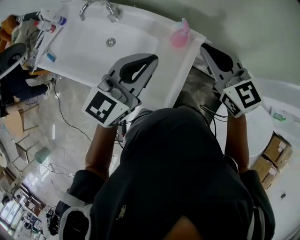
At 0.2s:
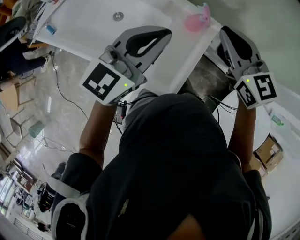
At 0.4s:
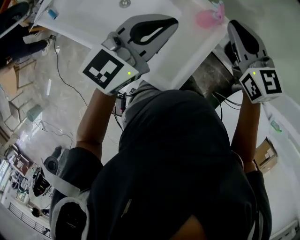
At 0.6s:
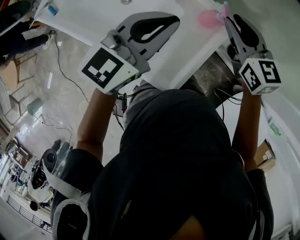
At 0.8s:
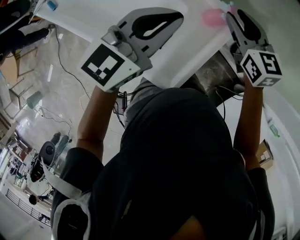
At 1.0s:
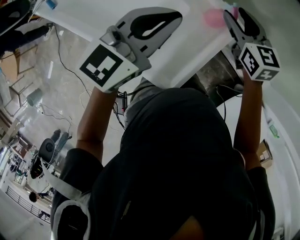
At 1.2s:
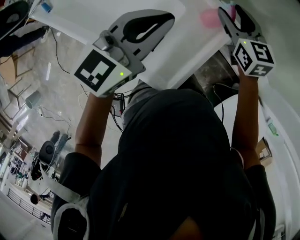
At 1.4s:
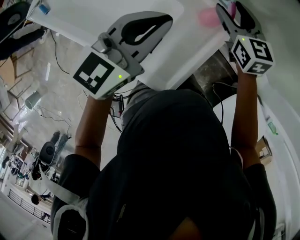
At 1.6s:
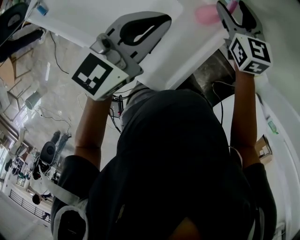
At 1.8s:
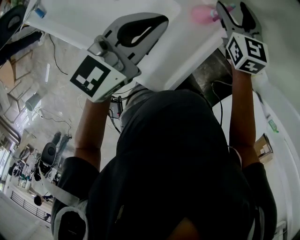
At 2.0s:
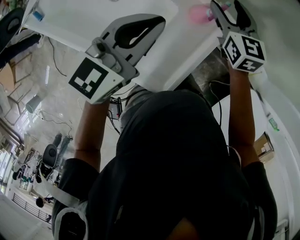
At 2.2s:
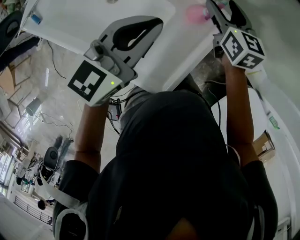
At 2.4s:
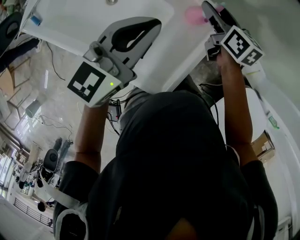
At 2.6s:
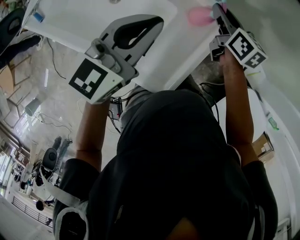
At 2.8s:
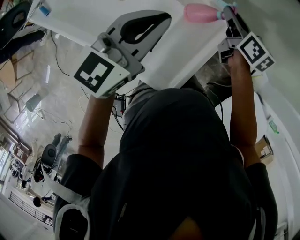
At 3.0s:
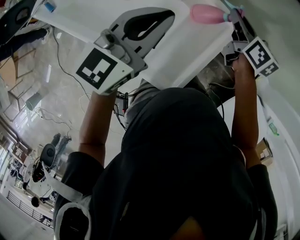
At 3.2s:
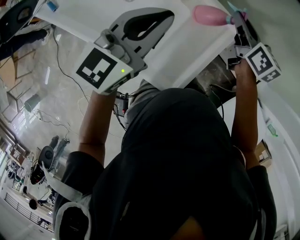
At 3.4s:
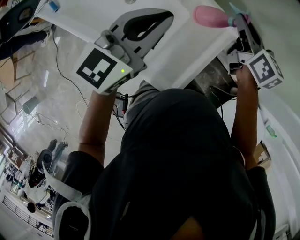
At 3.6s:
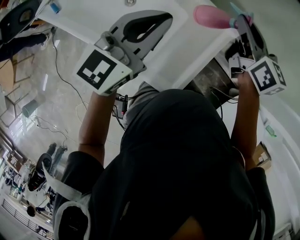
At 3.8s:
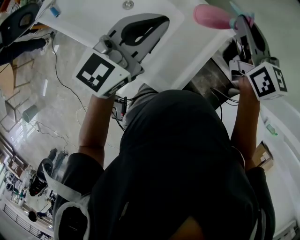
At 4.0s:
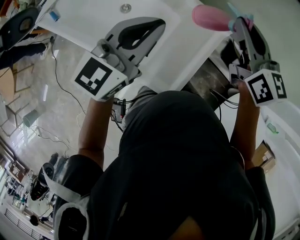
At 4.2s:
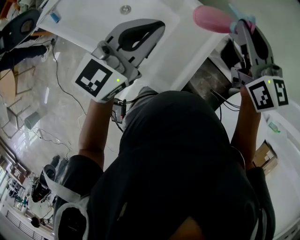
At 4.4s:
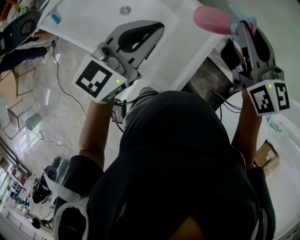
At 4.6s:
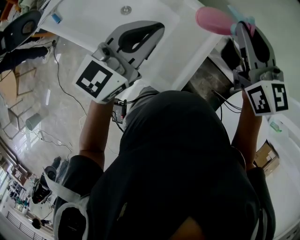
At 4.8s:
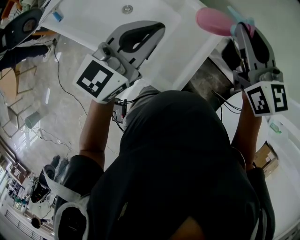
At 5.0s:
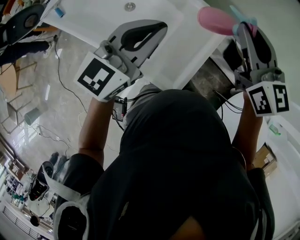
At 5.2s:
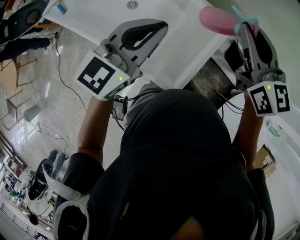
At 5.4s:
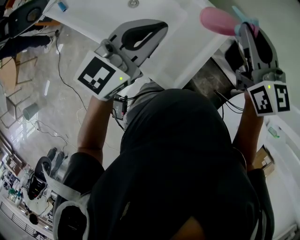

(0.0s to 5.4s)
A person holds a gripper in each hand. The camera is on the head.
0.0s - 1.4s: The right gripper heads downward and forward, covering roughly 25 cm, and opens up. Meanwhile the left gripper travels downward, forward and to the left by approximately 15 cm.
1.4s - 2.8s: The right gripper changes its angle by about 40 degrees, and closes its fingers.
2.8s - 4.0s: The right gripper travels upward and backward by some 25 cm, and changes its angle by about 30 degrees. Meanwhile the left gripper shifts some 10 cm upward and backward.
4.0s - 5.4s: The right gripper shifts approximately 5 cm backward.

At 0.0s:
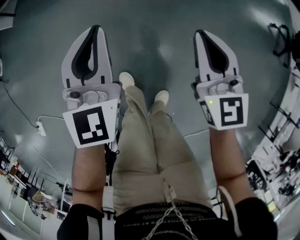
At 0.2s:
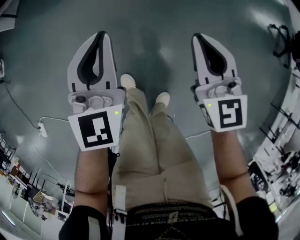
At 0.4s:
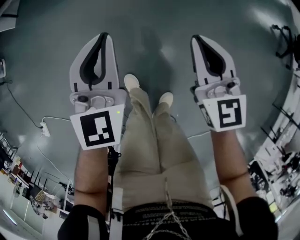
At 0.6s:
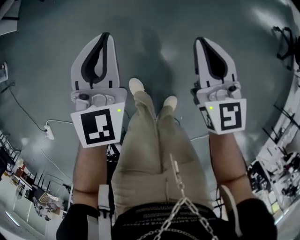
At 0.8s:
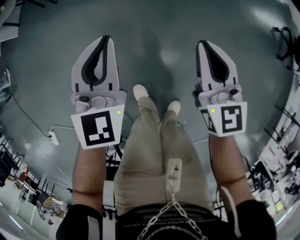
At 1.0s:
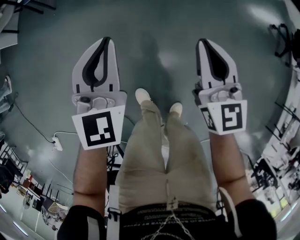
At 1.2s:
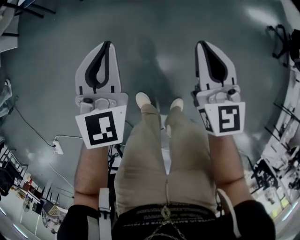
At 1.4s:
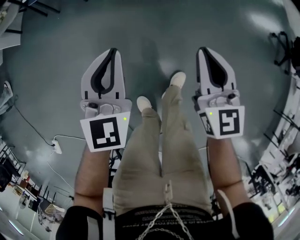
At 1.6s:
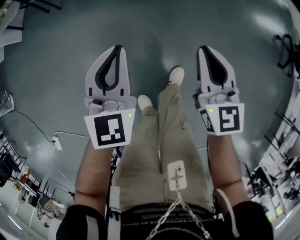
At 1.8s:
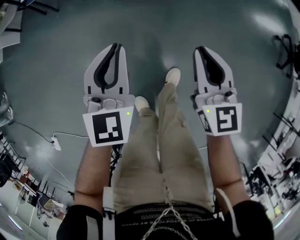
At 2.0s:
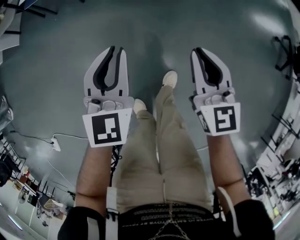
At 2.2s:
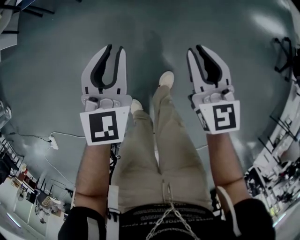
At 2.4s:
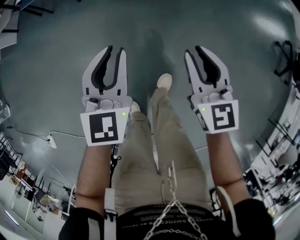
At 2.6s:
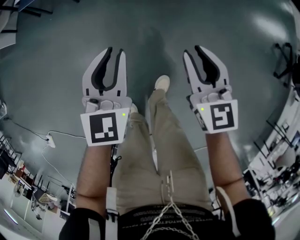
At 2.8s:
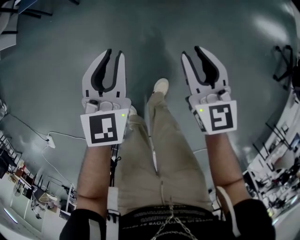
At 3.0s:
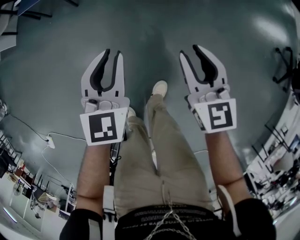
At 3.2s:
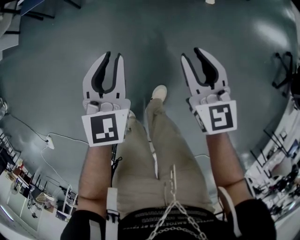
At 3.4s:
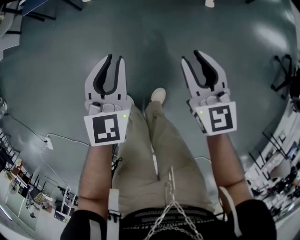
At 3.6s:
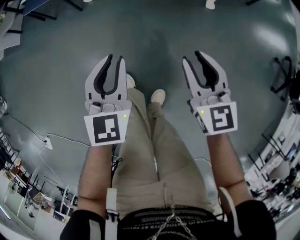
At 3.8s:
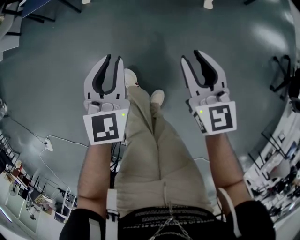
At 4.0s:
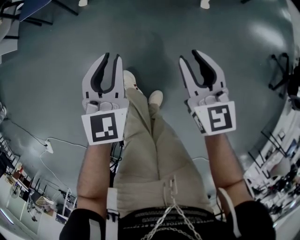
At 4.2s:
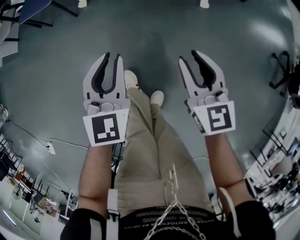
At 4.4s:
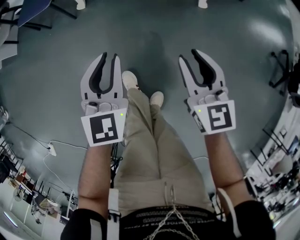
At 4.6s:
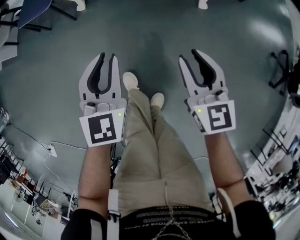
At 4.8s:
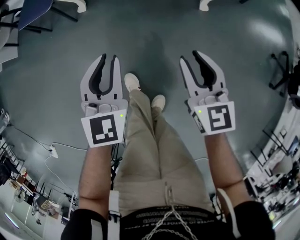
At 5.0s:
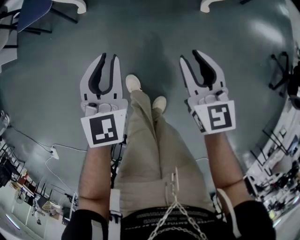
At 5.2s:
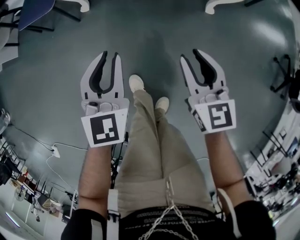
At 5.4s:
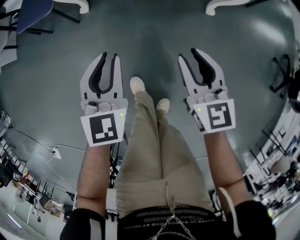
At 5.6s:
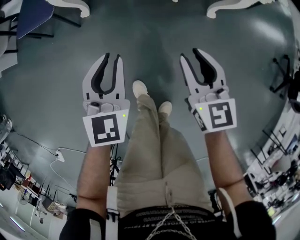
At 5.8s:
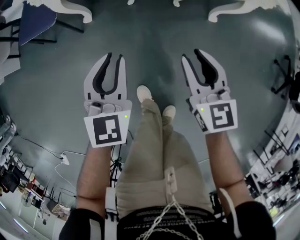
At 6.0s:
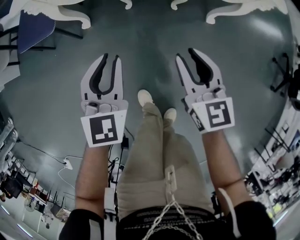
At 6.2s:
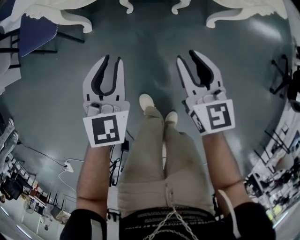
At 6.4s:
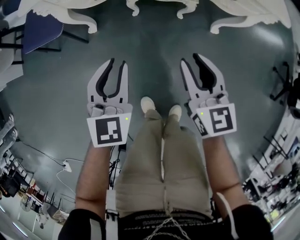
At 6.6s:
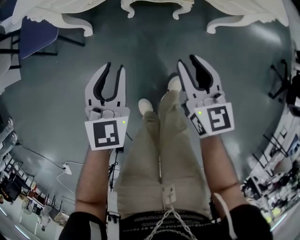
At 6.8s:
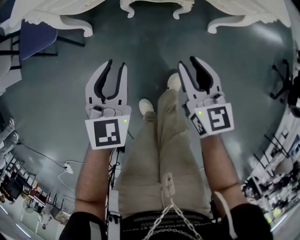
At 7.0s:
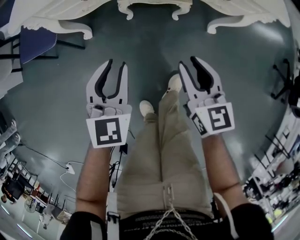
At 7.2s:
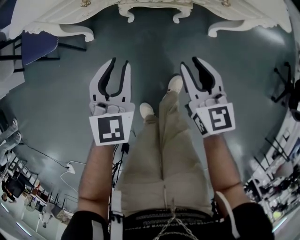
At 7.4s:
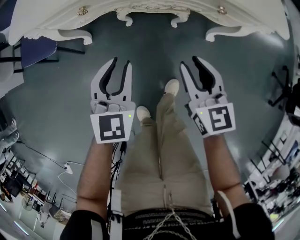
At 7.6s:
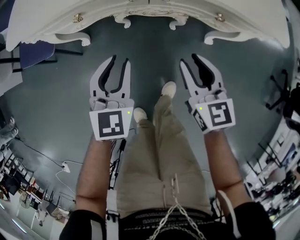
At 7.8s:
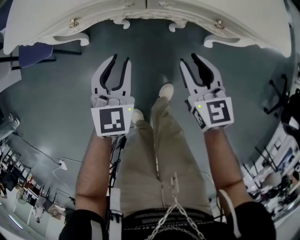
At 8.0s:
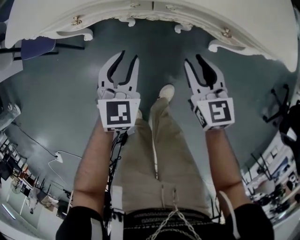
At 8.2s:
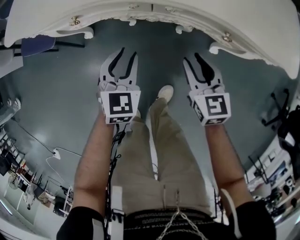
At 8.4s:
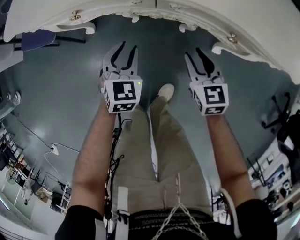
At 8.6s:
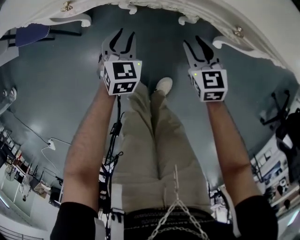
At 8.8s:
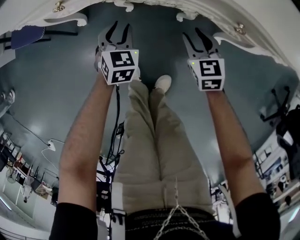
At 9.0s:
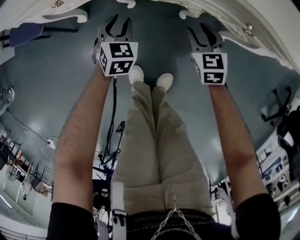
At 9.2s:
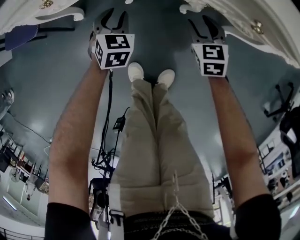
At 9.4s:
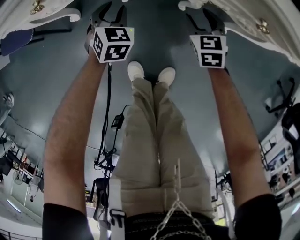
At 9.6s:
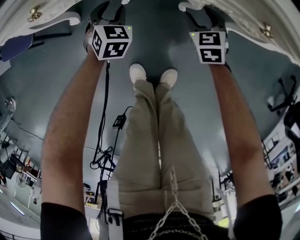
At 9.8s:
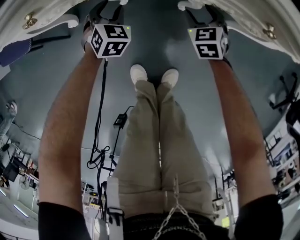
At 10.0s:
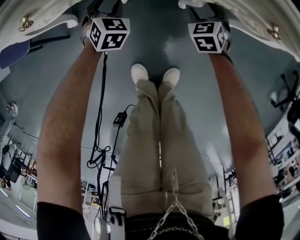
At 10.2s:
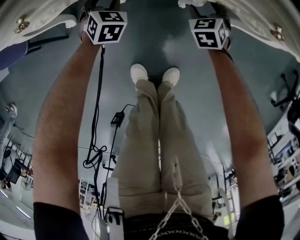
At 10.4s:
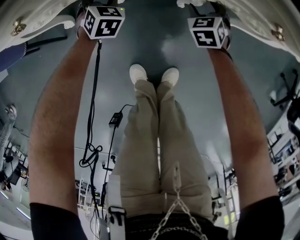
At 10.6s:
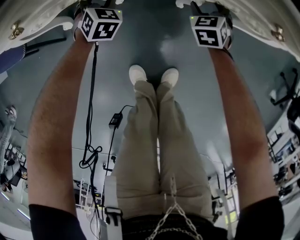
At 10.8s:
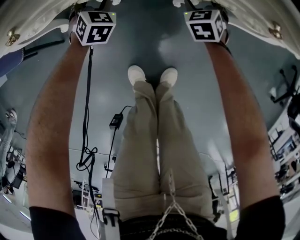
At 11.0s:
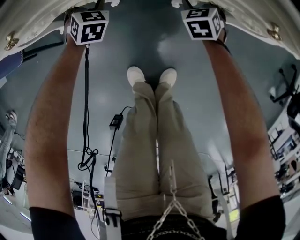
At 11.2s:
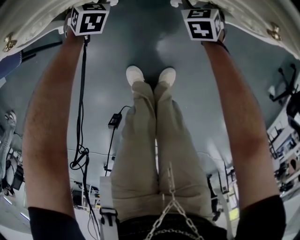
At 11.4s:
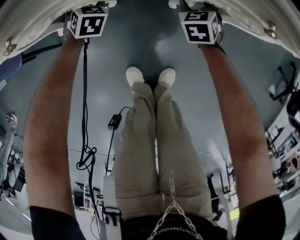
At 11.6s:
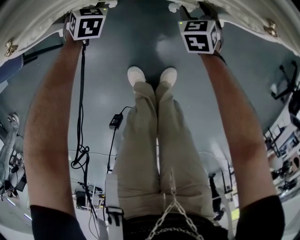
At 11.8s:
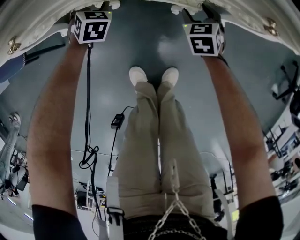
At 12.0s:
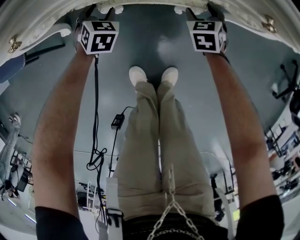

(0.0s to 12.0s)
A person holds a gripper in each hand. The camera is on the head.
0.0s - 1.6s: The left gripper heads forward, covering about 10 cm, while the right gripper is displaced forward and to the left by about 10 cm.
1.6s - 3.0s: Both grippers travel together forward and to the right, some 15 cm. The right gripper opens.
3.0s - 4.4s: The left gripper ends up roughly 5 cm from where it was.
4.4s - 6.0s: The left gripper goes roughly 15 cm forward, while the right gripper is displaced forward and to the left by some 15 cm.
6.0s - 7.6s: Both grippers travel together forward and to the right, approximately 15 cm.
7.6s - 9.0s: The two grippers go roughly 20 cm downward and forward. The left gripper turns by some 20 degrees. Meanwhile the right gripper swivels about 20 degrees.
9.0s - 10.4s: The left gripper heads forward and downward, covering roughly 15 cm; the right gripper shifts roughly 10 cm downward and forward, changes its angle by some 20 degrees, and opens up.
10.4s - 12.0s: There are only small adjustments of the grippers.

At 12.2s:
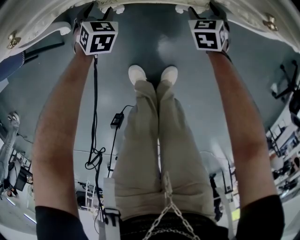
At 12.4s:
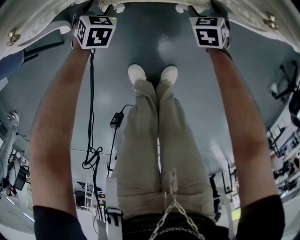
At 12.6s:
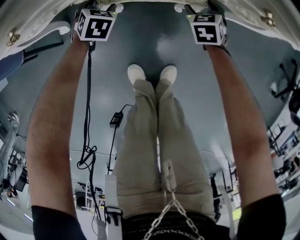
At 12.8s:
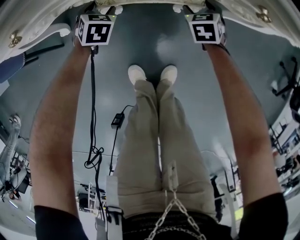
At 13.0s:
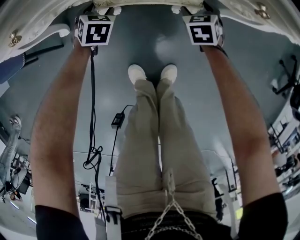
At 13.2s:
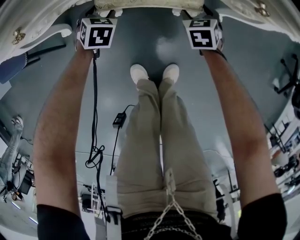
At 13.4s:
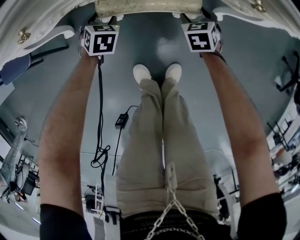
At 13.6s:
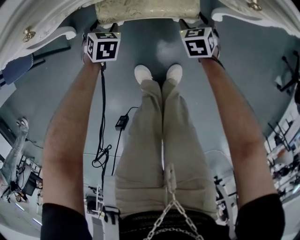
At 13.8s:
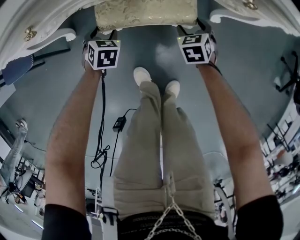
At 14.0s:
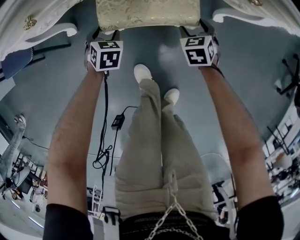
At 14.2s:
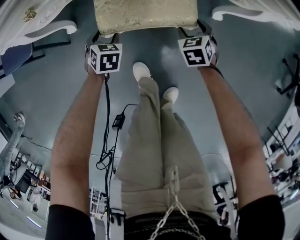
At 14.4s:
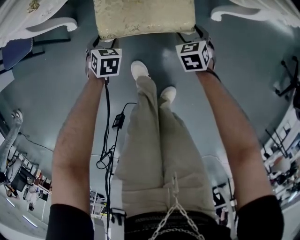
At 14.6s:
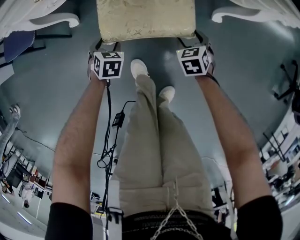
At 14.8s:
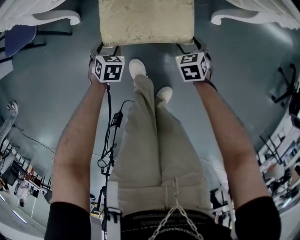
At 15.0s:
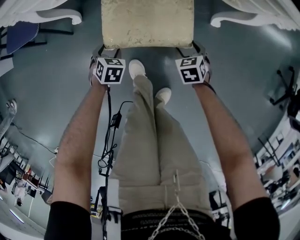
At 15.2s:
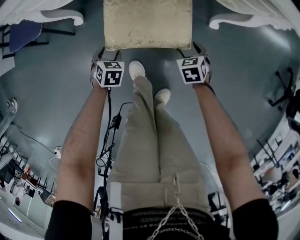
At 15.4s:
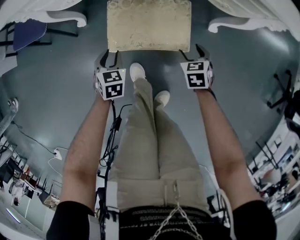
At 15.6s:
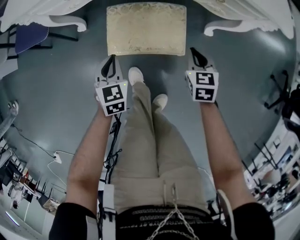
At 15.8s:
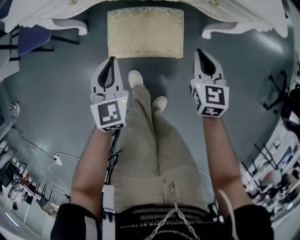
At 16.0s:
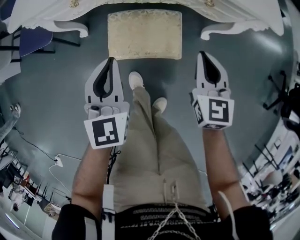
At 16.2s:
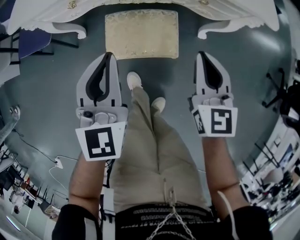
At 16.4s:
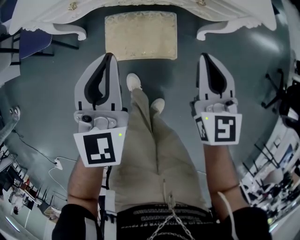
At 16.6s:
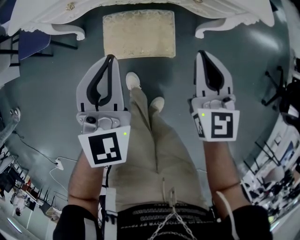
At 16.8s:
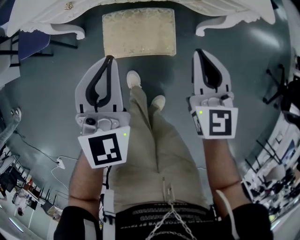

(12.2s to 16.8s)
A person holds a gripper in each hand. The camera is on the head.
12.2s - 13.8s: The two grippers go about 10 cm backward.
13.8s - 15.2s: The two grippers go some 15 cm backward.
15.2s - 16.8s: Both grippers move upward, roughly 40 cm. The right gripper tilts its fingers approximately 40 degrees upward, and closes its fingers. Meanwhile the left gripper points its fingers approximately 50 degrees further upward, and closes its fingers.

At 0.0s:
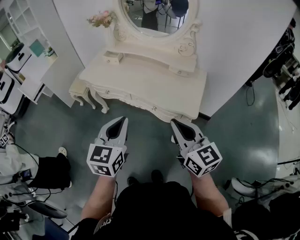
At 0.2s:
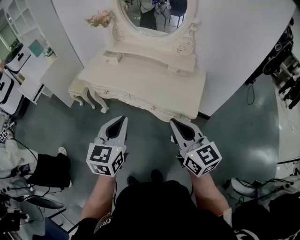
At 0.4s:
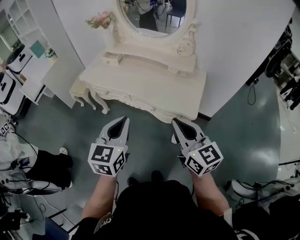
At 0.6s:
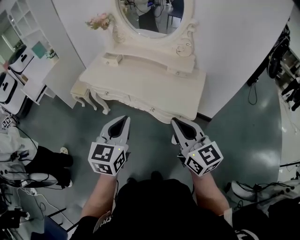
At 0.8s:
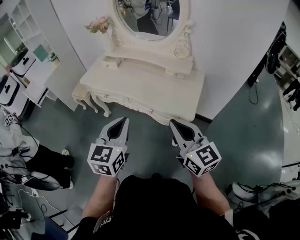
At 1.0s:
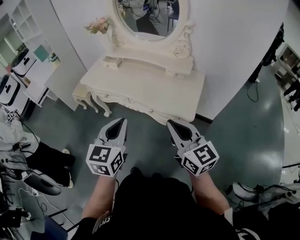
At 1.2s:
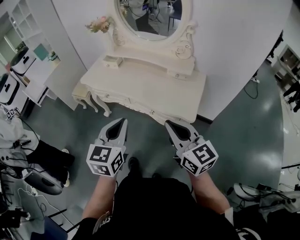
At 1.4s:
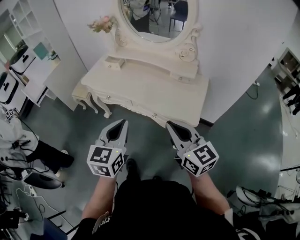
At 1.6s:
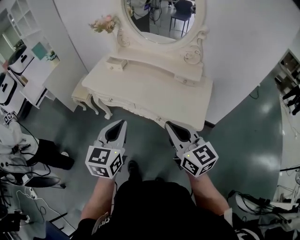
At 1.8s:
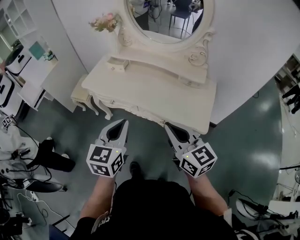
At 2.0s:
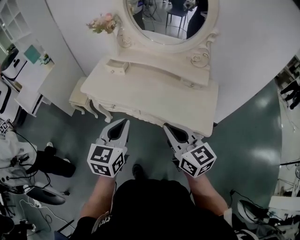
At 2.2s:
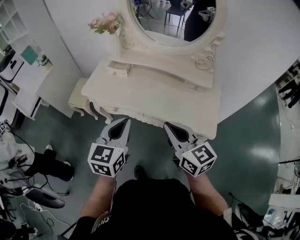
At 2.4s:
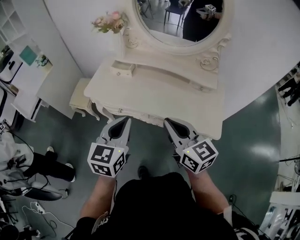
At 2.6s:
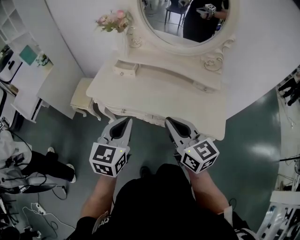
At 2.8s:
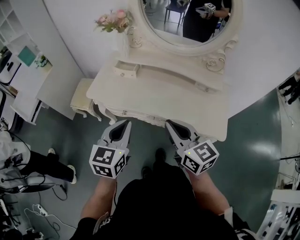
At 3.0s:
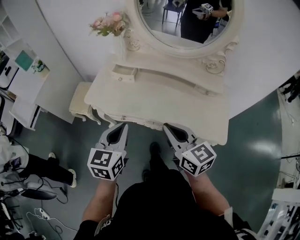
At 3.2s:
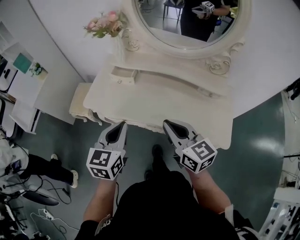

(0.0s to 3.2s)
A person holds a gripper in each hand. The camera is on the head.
0.0s - 1.6s: The grippers both shift forward by approximately 5 cm.
1.6s - 3.2s: Both grippers travel together forward and to the left, about 30 cm.
